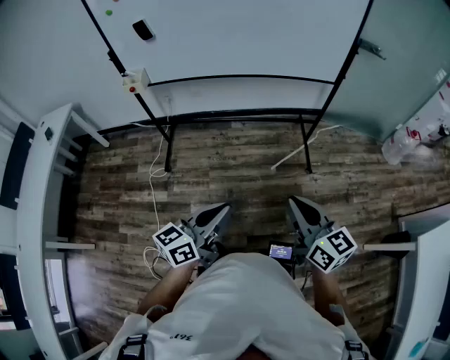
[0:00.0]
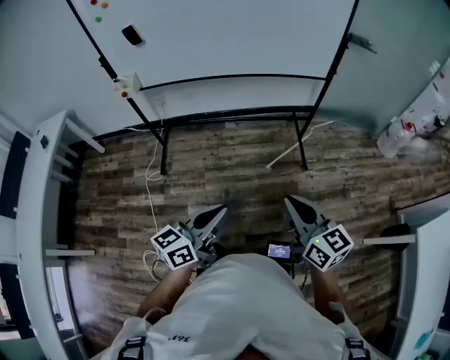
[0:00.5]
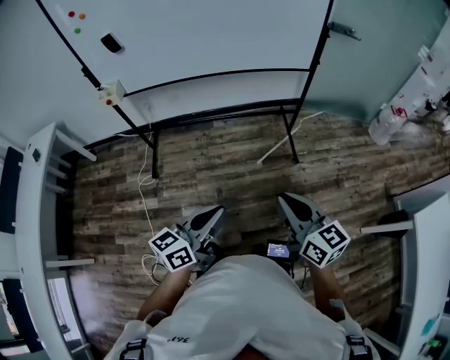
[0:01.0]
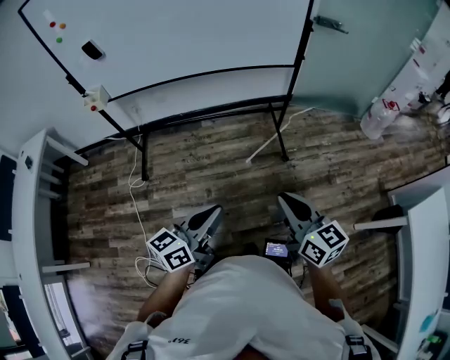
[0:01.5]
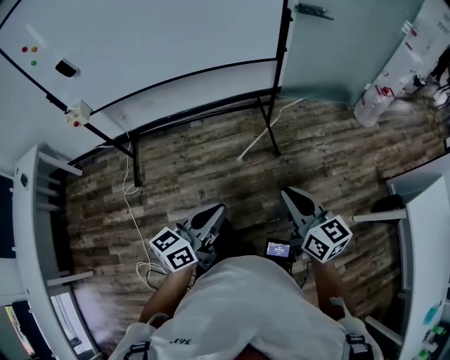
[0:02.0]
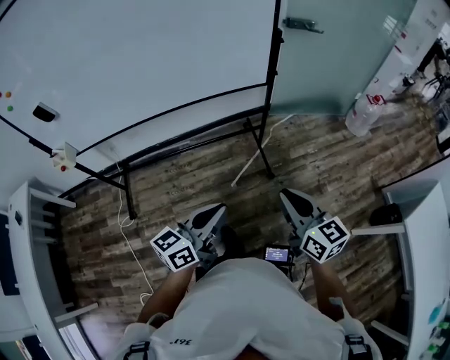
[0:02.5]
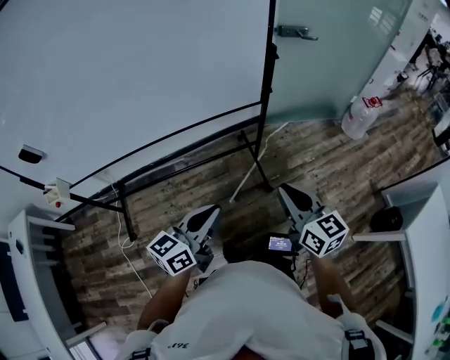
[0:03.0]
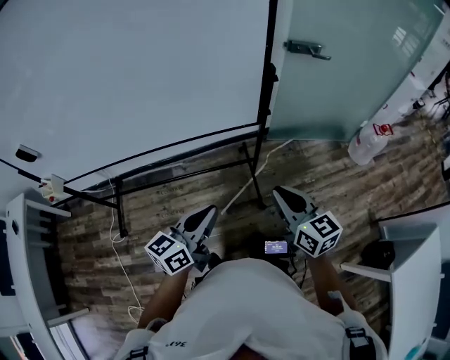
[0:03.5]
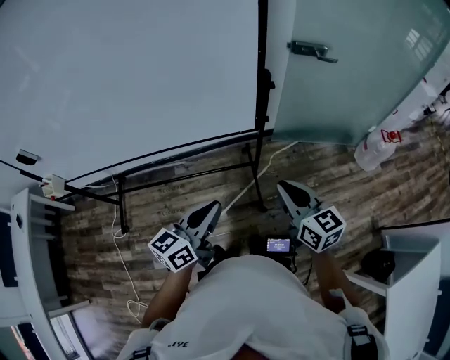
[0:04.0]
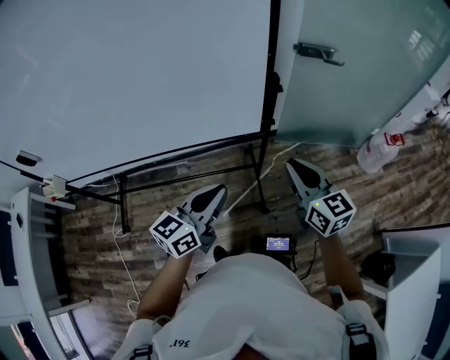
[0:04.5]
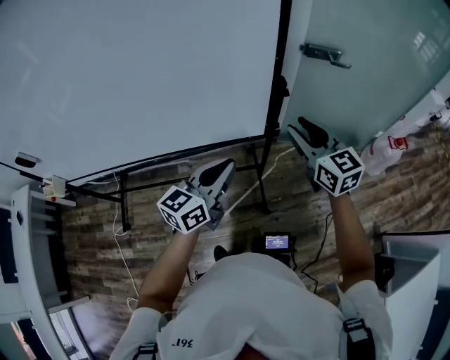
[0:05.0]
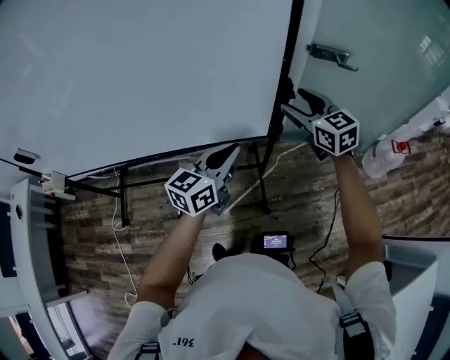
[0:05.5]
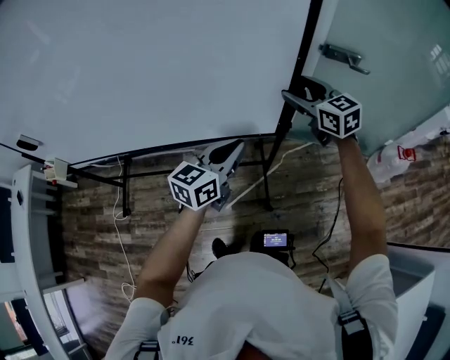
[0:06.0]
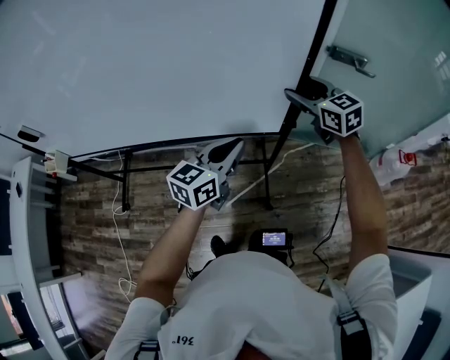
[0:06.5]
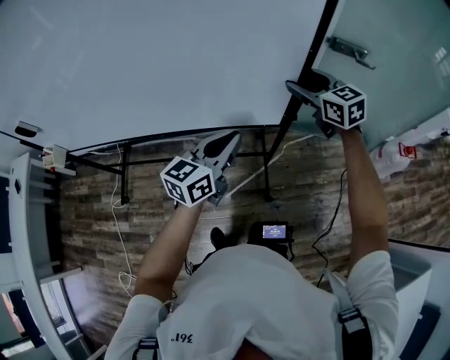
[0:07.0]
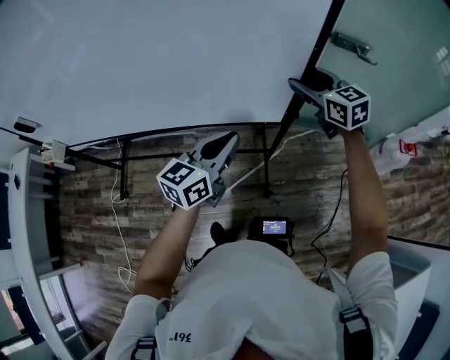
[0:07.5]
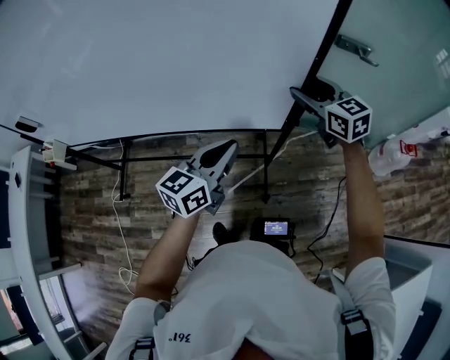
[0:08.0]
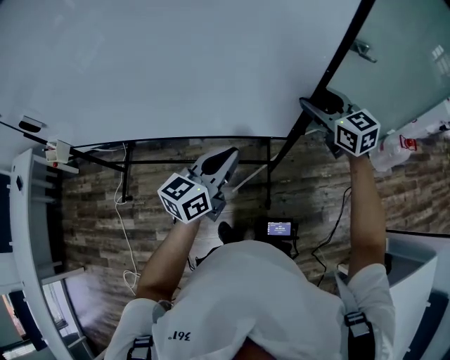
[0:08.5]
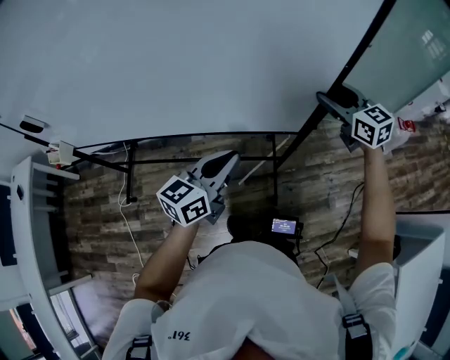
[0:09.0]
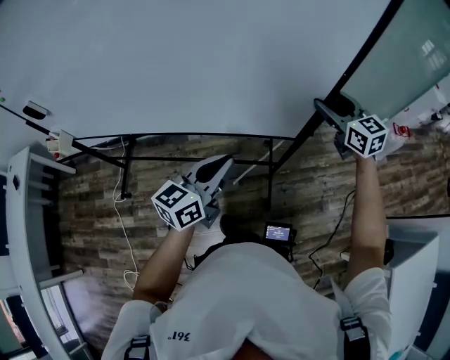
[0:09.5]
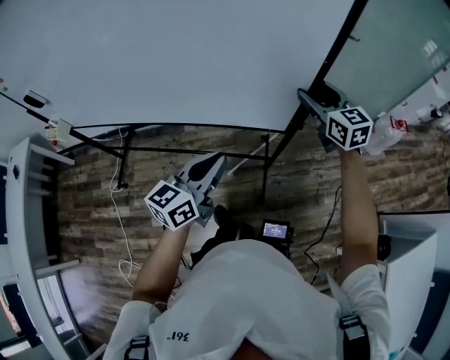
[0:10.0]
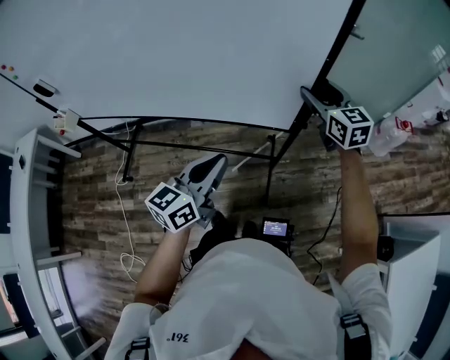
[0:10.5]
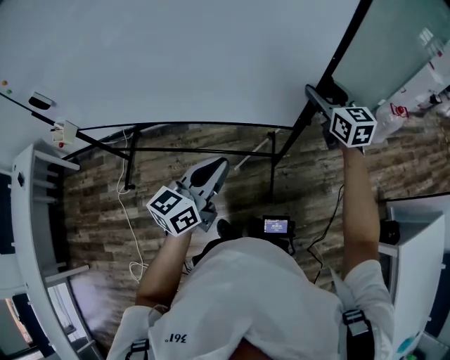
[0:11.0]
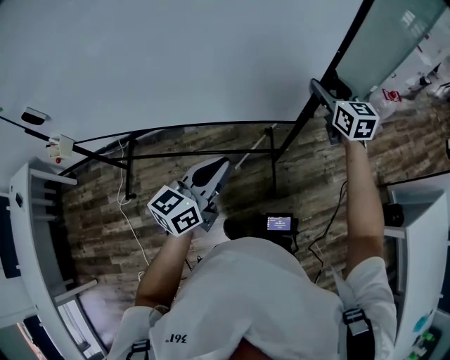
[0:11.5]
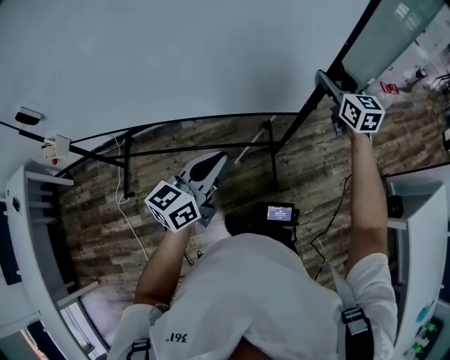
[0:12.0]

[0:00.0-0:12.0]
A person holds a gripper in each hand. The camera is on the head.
0:00.0 to 0:02.0: Both grippers move to the right, roughly 20 cm.
0:02.0 to 0:04.0: The pair of grippers is taken forward, about 40 cm.
0:04.0 to 0:06.0: The left gripper shifts about 20 cm forward; the right gripper goes some 30 cm forward, swivels about 20 degrees, and opens up.
0:06.0 to 0:08.0: The right gripper changes place by roughly 5 cm. Meanwhile the left gripper is displaced backward by some 5 cm.
0:08.0 to 0:10.0: The grippers both shift backward by roughly 20 cm.
0:10.0 to 0:12.0: The left gripper goes some 10 cm to the left and backward.

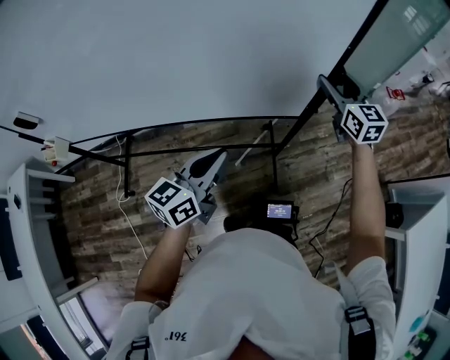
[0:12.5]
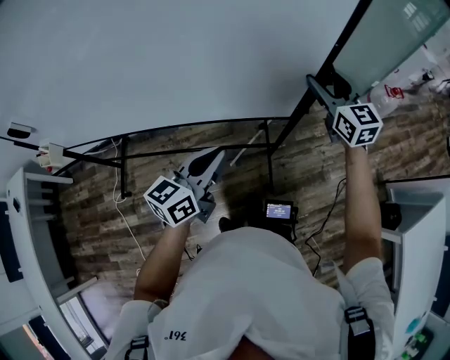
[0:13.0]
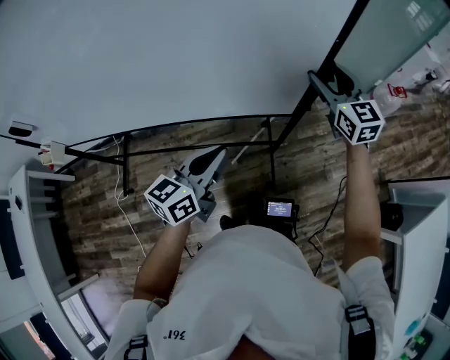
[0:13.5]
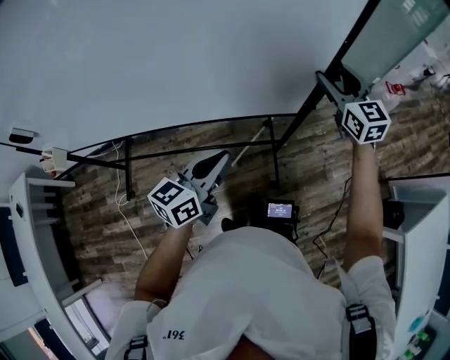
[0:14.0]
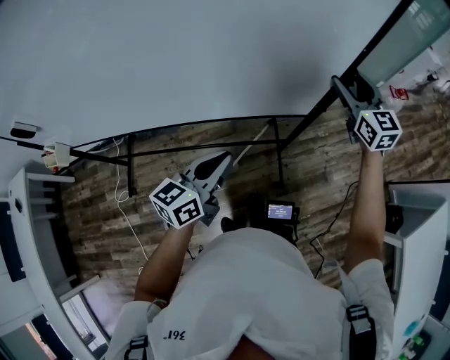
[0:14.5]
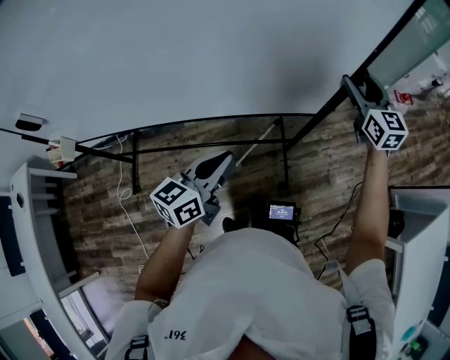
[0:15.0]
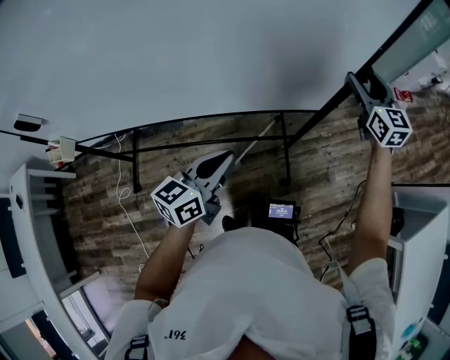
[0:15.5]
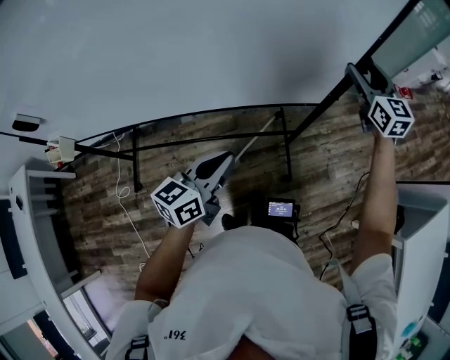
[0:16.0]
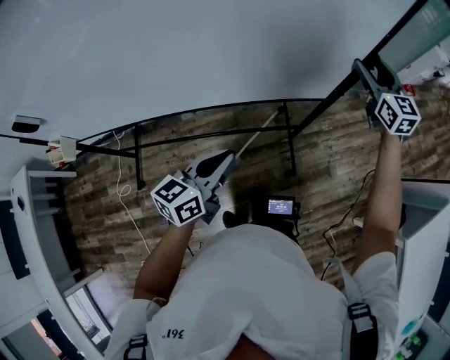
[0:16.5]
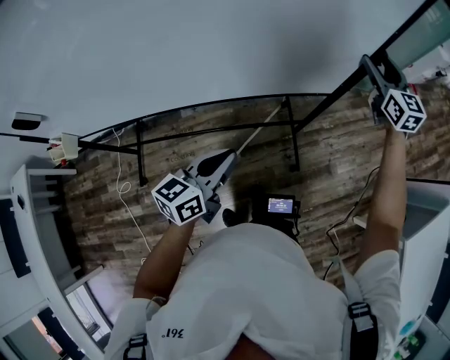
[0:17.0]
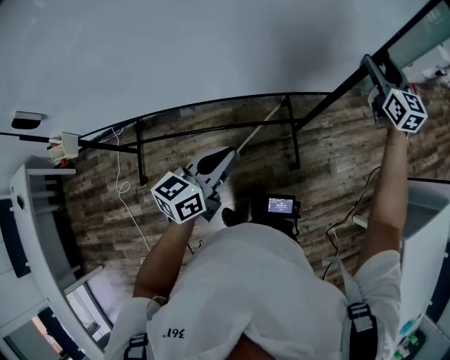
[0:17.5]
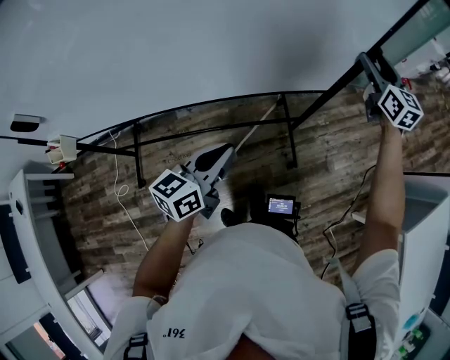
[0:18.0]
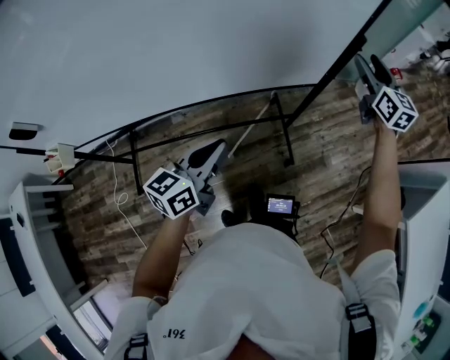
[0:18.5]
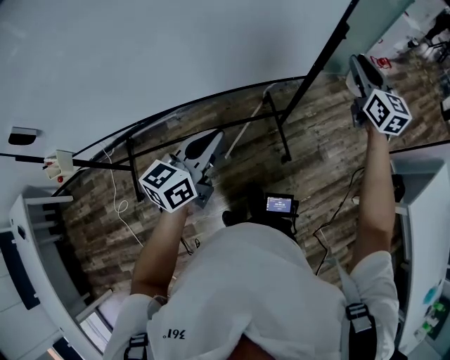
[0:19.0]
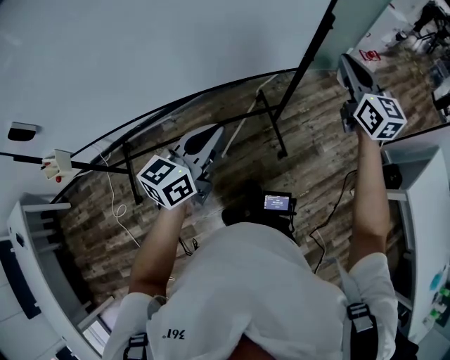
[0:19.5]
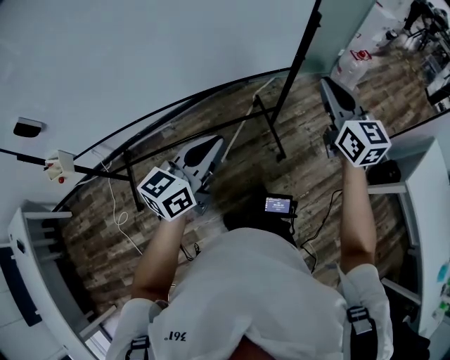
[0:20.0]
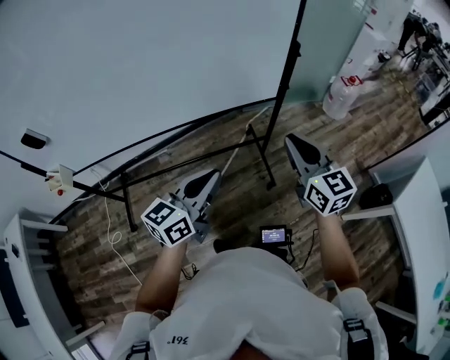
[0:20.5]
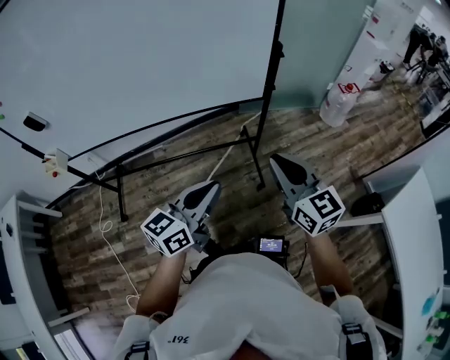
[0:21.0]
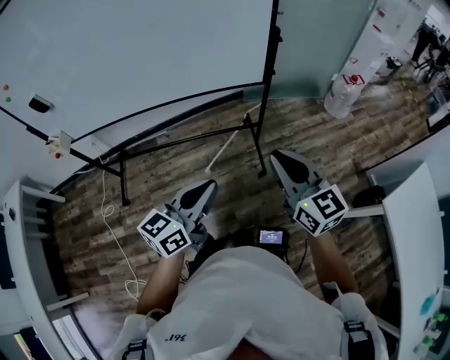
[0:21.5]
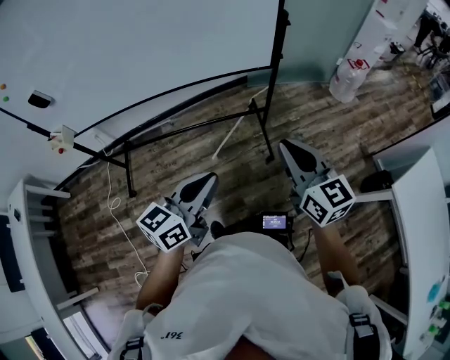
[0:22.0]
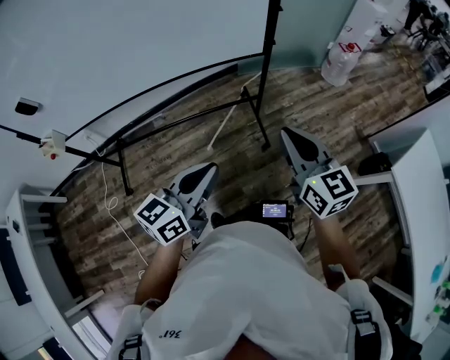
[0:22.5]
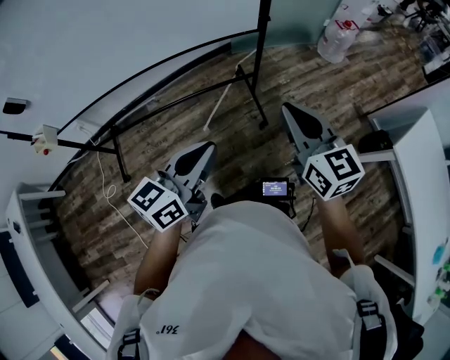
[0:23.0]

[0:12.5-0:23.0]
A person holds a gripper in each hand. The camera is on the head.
0:12.5 to 0:14.5: The right gripper shifts by roughly 5 cm, while the left gripper changes place by approximately 5 cm.
0:14.5 to 0:16.5: The right gripper moves forward, about 5 cm.
0:16.5 to 0:19.0: The right gripper shifts about 10 cm backward and to the right, and closes its fingers.
0:19.0 to 0:21.0: The left gripper moves to the right and backward, some 20 cm; the right gripper shifts approximately 30 cm backward, and turns by about 20 degrees.
0:21.0 to 0:23.0: The left gripper moves backward, about 5 cm. Meanwhile the right gripper changes place by roughly 5 cm.

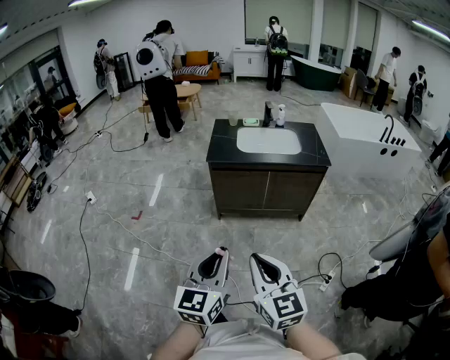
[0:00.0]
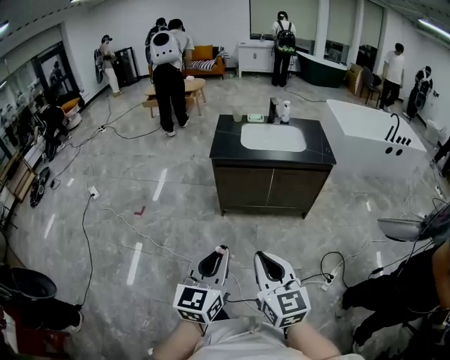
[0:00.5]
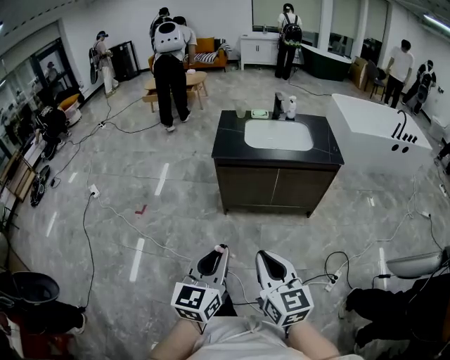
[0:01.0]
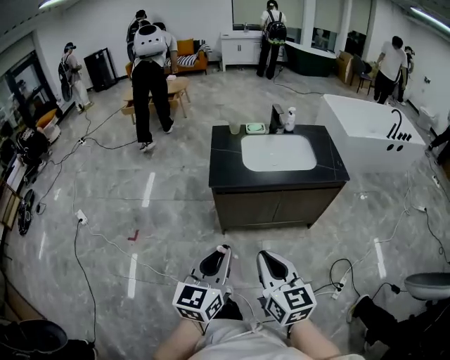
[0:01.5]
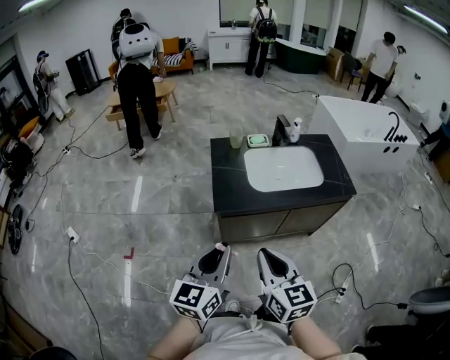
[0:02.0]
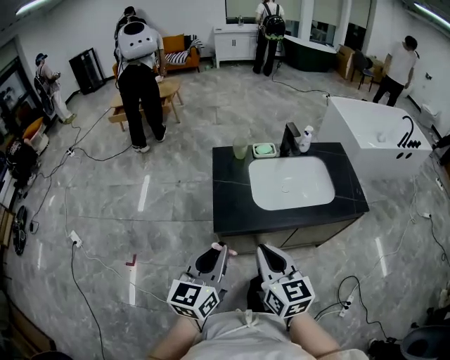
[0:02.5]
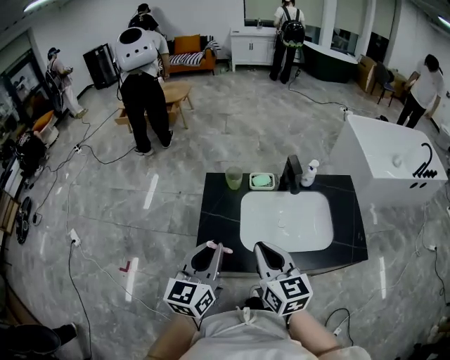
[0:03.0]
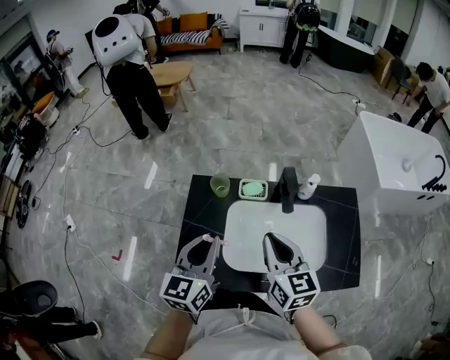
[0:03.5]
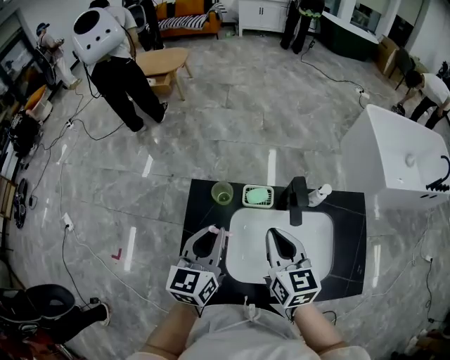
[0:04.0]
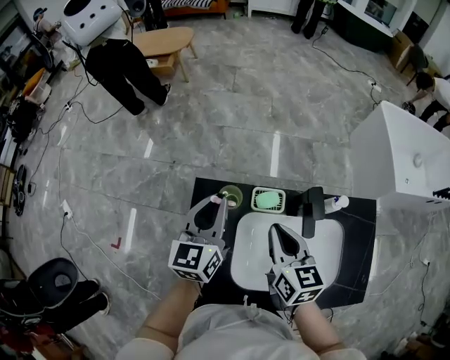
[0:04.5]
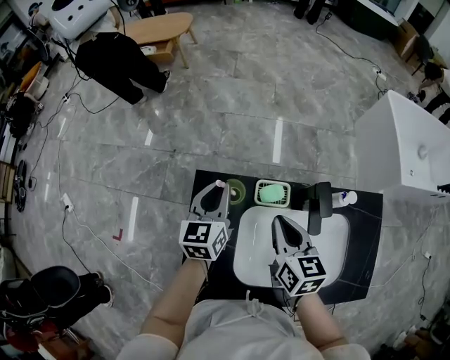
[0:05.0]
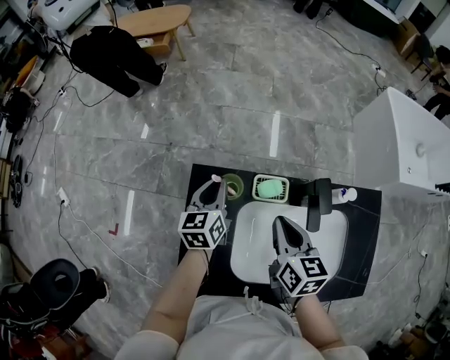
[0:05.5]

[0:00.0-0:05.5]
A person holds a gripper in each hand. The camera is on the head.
0:00.0 to 0:02.0: The grippers both shift forward by roughly 40 cm.
0:02.0 to 0:03.5: The two grippers travel together, forward, about 40 cm.
0:03.5 to 0:05.5: The left gripper travels forward and downward by about 30 cm, while the right gripper is displaced forward and downward by roughly 15 cm.
